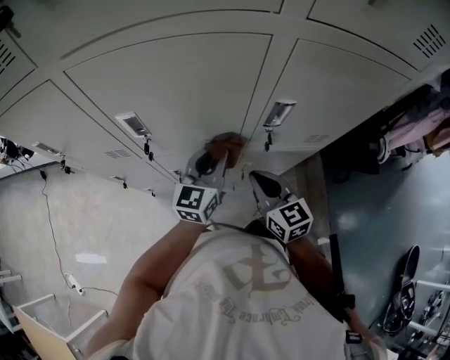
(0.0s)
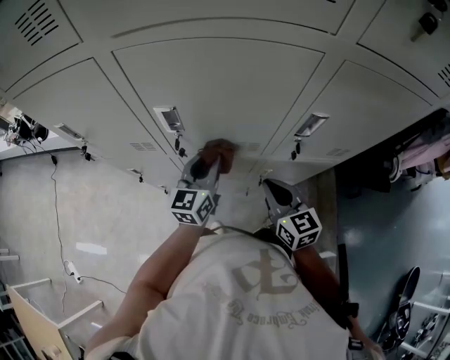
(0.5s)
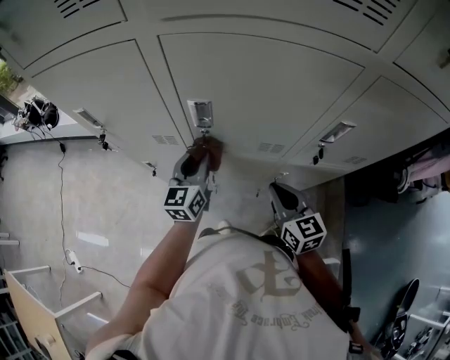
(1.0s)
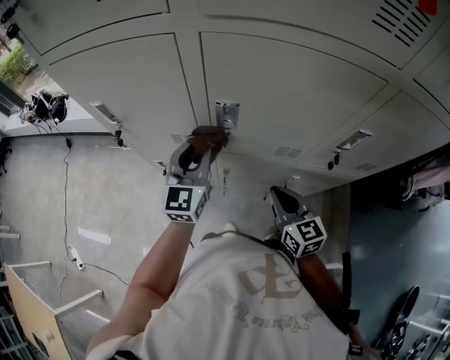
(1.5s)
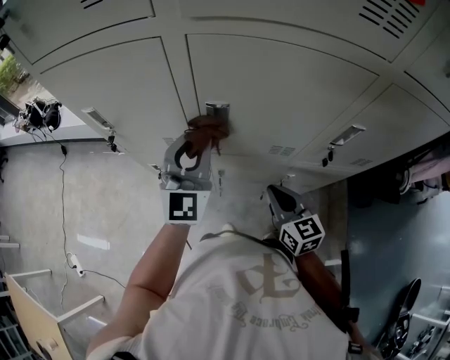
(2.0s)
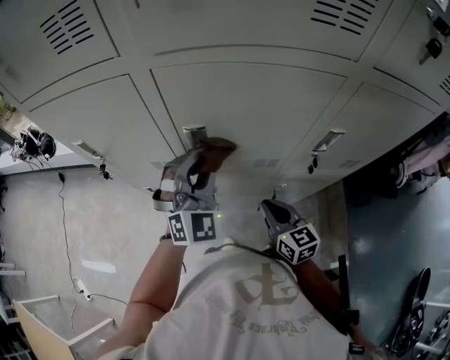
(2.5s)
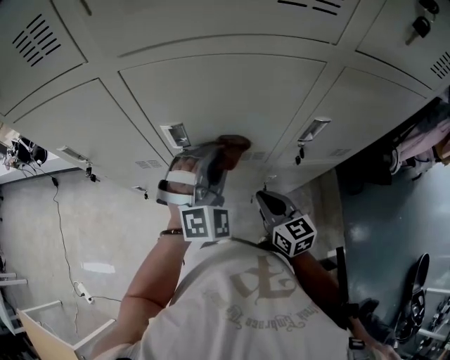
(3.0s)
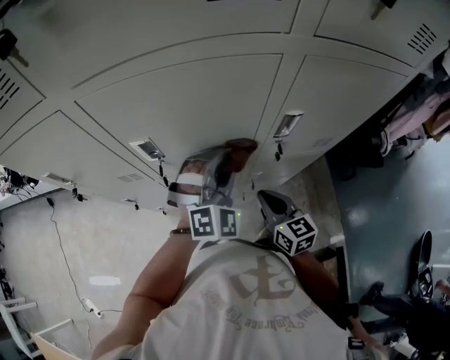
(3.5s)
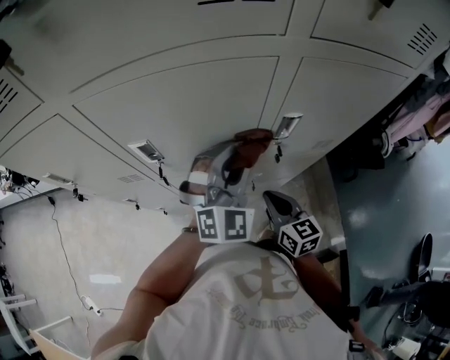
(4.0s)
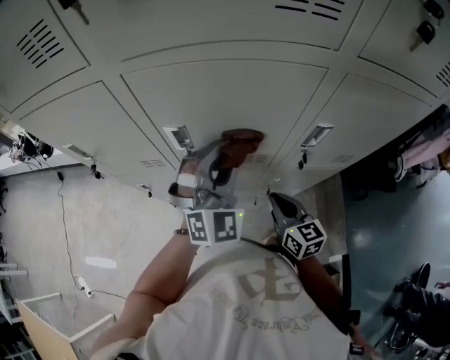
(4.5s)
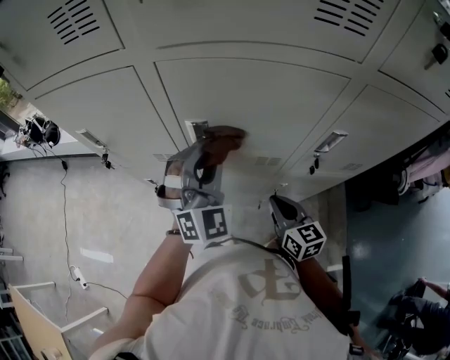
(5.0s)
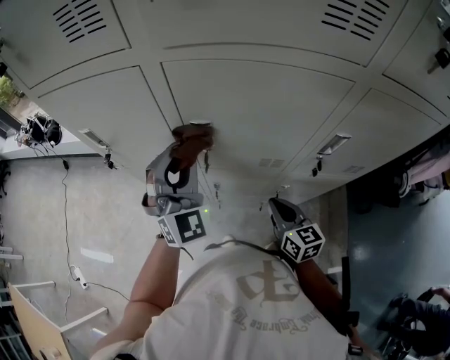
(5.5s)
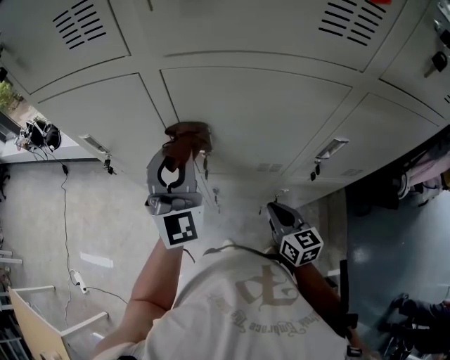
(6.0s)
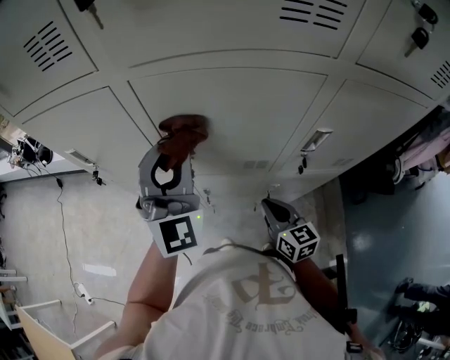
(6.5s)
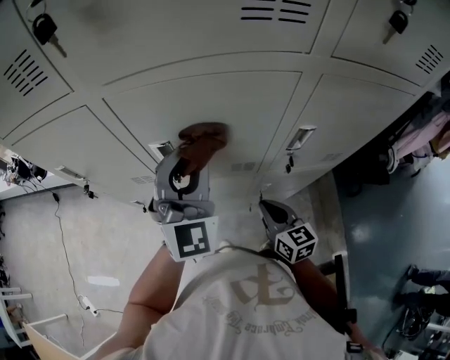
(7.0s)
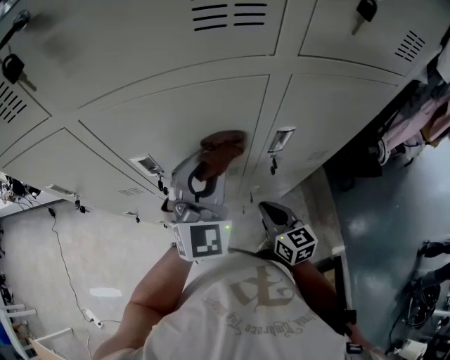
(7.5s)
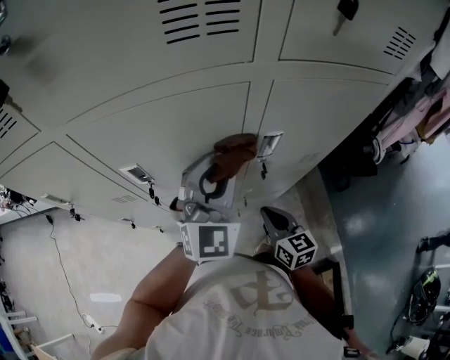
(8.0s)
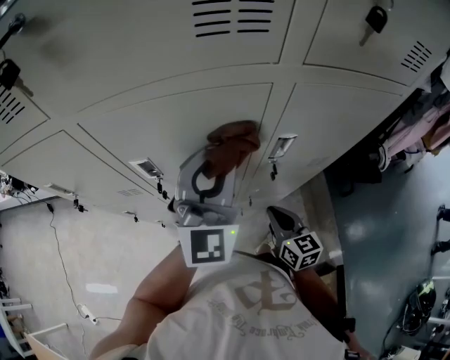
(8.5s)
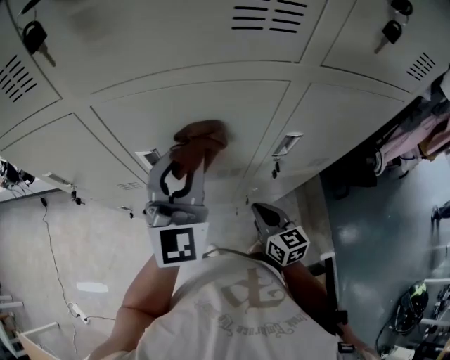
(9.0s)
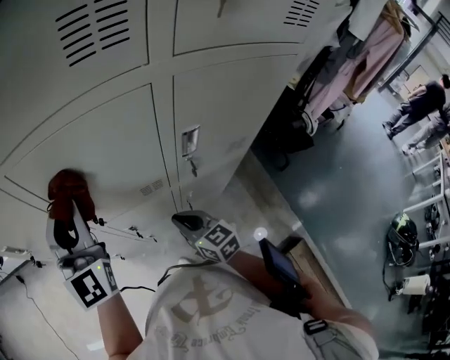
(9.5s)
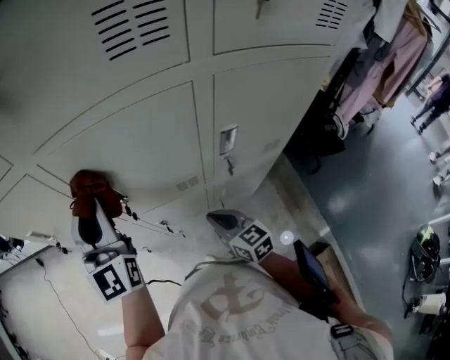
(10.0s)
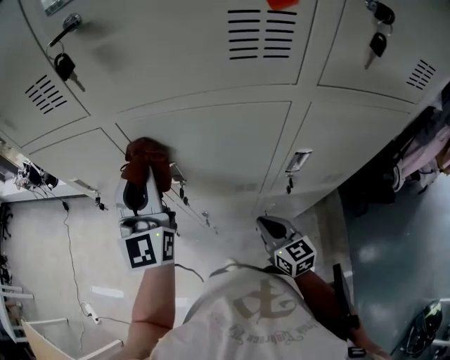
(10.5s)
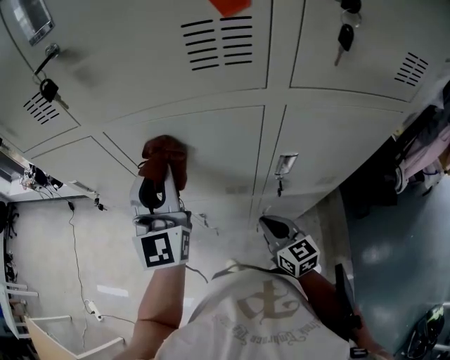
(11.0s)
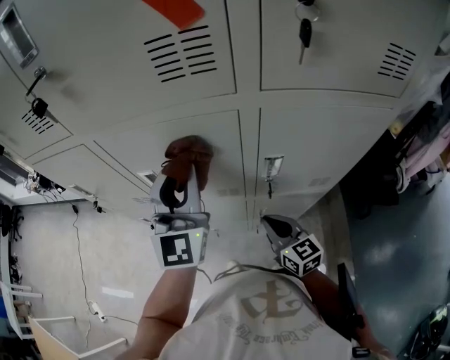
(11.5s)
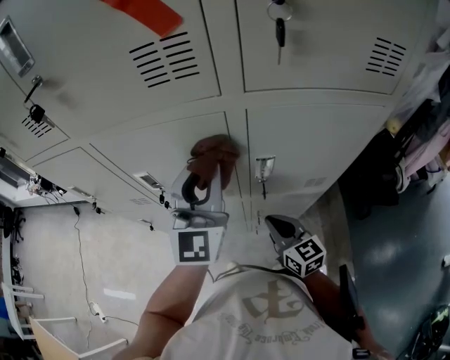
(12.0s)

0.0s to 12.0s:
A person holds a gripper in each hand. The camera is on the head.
0.0s to 2.0s: The right gripper shifts roughly 10 cm to the left. Meanwhile the left gripper heads to the left and upward, covering approximately 25 cm, and rotates some 40 degrees.
2.0s to 4.0s: The right gripper is displaced to the right by roughly 10 cm. Meanwhile the left gripper travels to the right by approximately 25 cm, and changes its angle by some 30 degrees.
4.0s to 6.0s: The right gripper is displaced to the left by about 5 cm, while the left gripper heads to the left, covering about 25 cm, and changes its angle by about 30 degrees.
6.0s to 8.0s: The right gripper heads to the right, covering roughly 10 cm; the left gripper goes roughly 25 cm to the right, and rotates about 30 degrees.
8.0s to 10.0s: The left gripper shifts some 20 cm to the left, and turns by about 30 degrees. Meanwhile the right gripper goes approximately 10 cm to the left.
10.0s to 12.0s: The left gripper moves to the right, some 20 cm, while the right gripper travels to the right by roughly 10 cm.

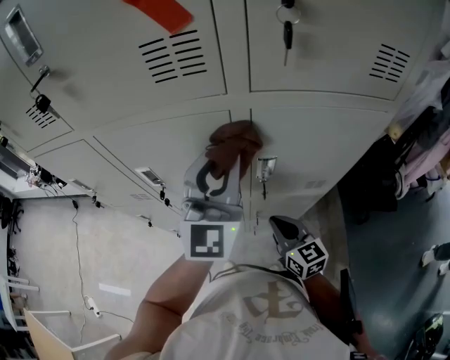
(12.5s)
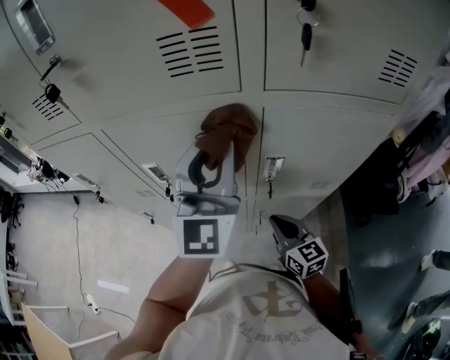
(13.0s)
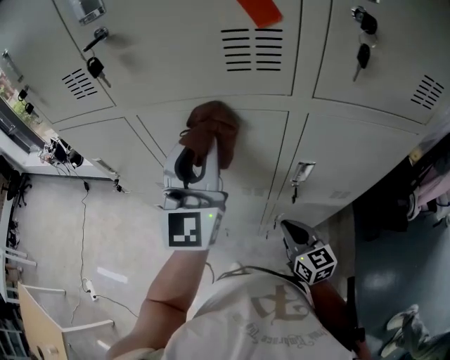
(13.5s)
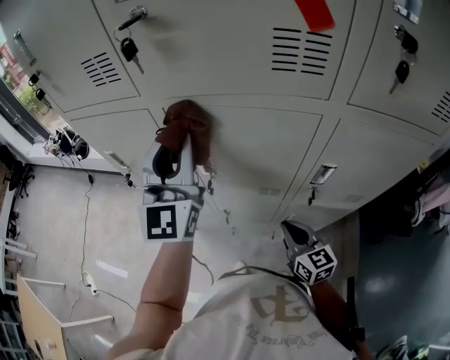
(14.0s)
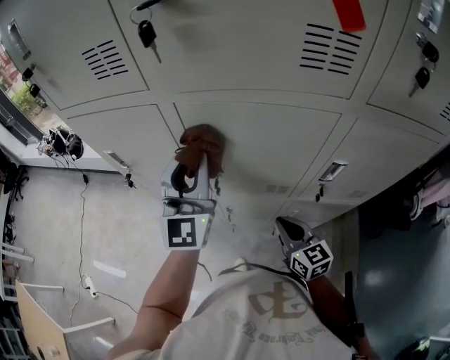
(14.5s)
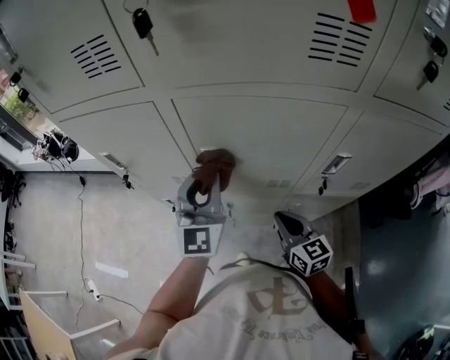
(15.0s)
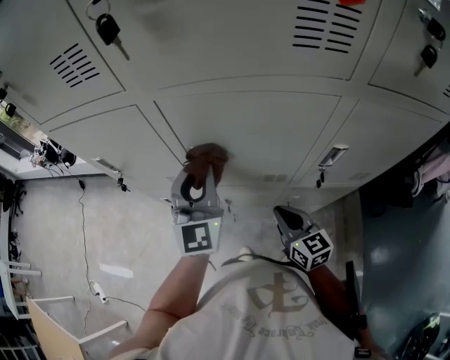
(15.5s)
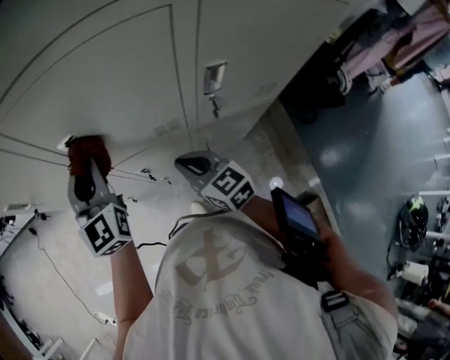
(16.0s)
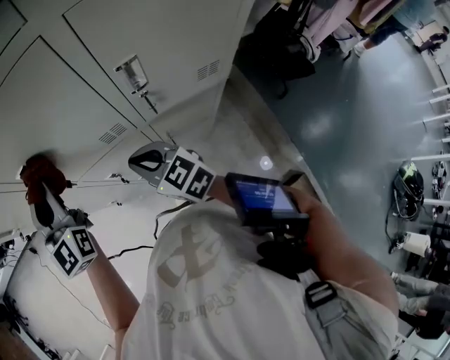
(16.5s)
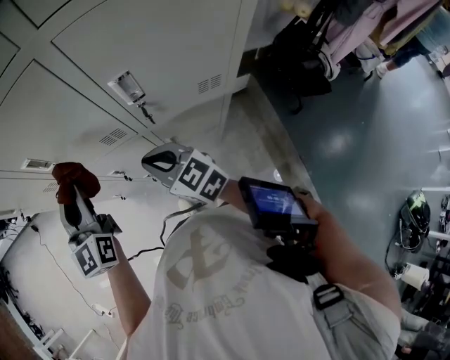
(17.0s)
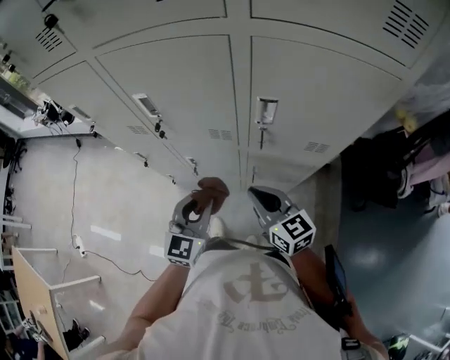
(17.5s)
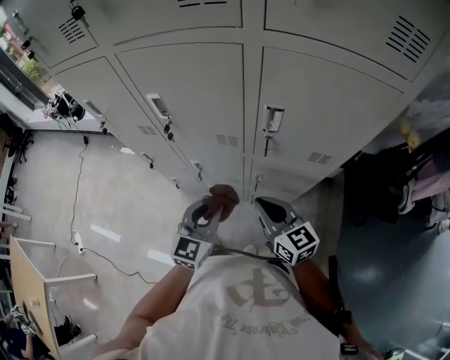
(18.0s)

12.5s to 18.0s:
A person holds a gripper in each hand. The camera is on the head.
12.5s to 14.5s: The left gripper heads to the left, covering approximately 25 cm, while the right gripper goes approximately 15 cm to the left.
14.5s to 16.0s: The left gripper heads downward, covering approximately 10 cm; the right gripper changes place by some 5 cm.
16.0s to 18.0s: The left gripper is displaced backward, to the right and downward by approximately 30 cm; the right gripper heads backward and to the right, covering approximately 20 cm.

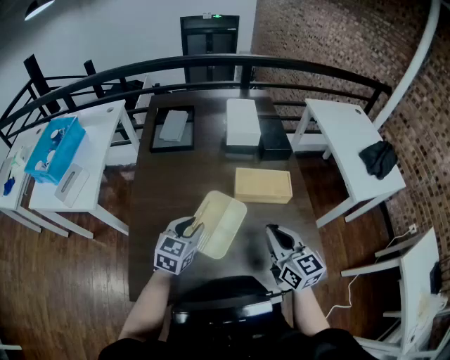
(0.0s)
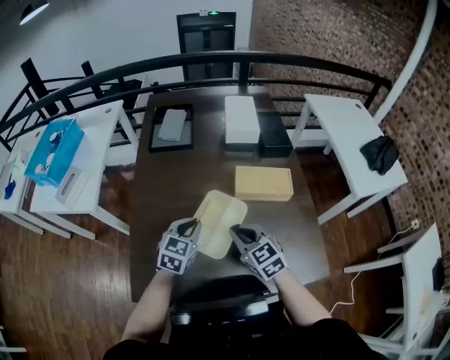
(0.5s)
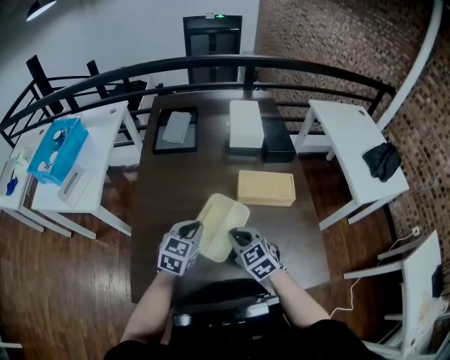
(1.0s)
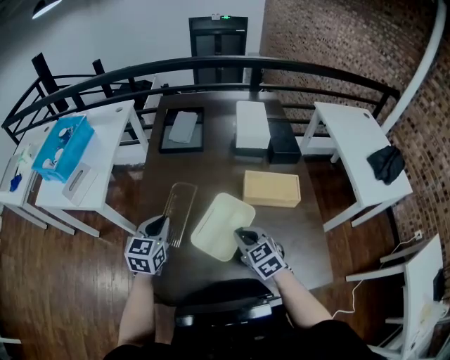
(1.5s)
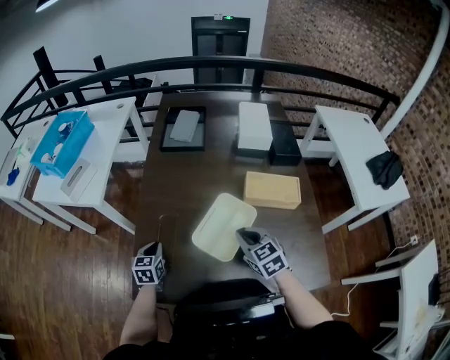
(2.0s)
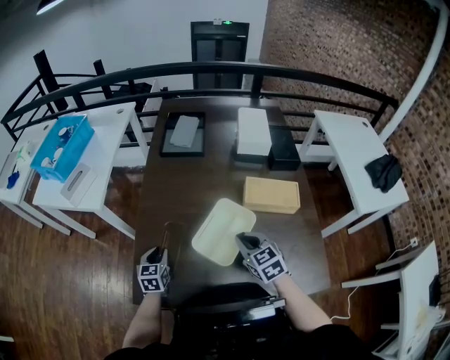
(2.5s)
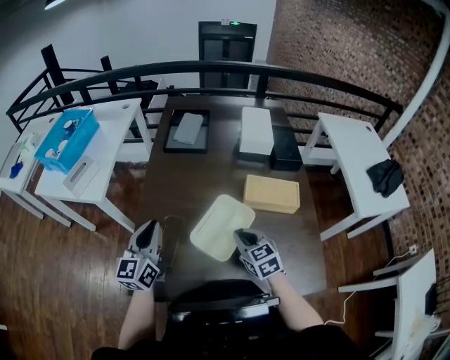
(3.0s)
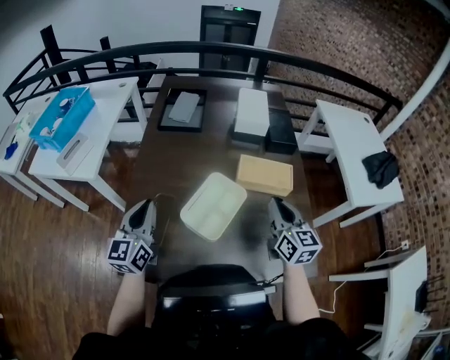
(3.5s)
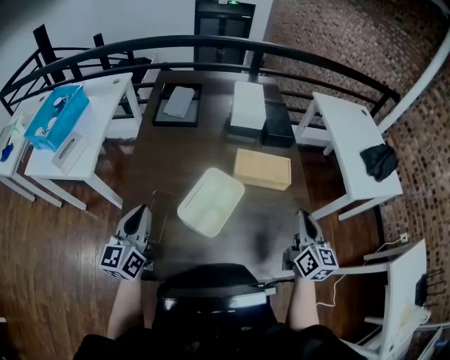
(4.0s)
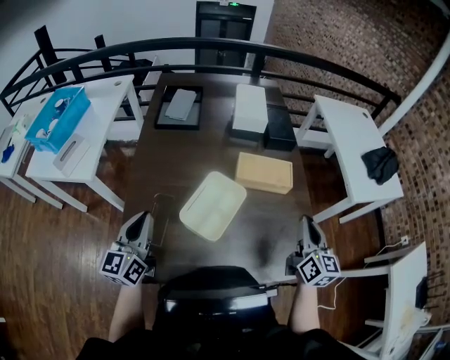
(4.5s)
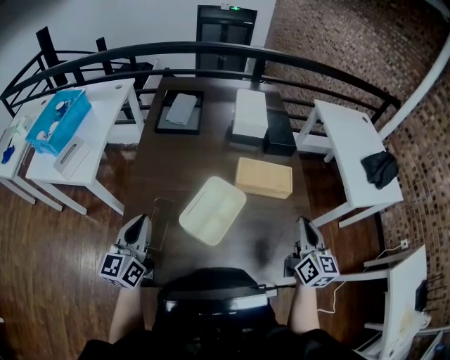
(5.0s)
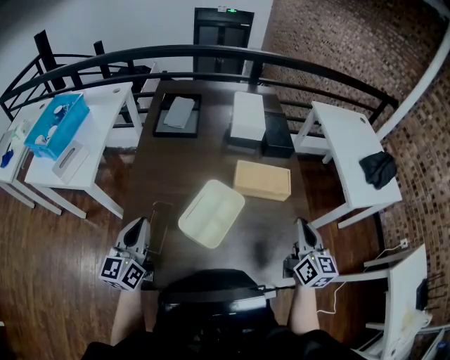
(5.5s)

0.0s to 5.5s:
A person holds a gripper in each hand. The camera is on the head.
0.0s to 2.0s: The left gripper moves to the left and downward, about 25 cm, changes its angle by about 30 degrees, and closes up. The right gripper moves downward and to the left, about 15 cm, and swivels roughly 30 degrees.
2.0s to 3.5s: The right gripper travels to the right and upward by some 15 cm, and rotates some 30 degrees, while the left gripper shifts some 20 cm upward, and tips its fingers upward by some 30 degrees.
3.5s to 5.5s: The right gripper moves to the right, approximately 10 cm.

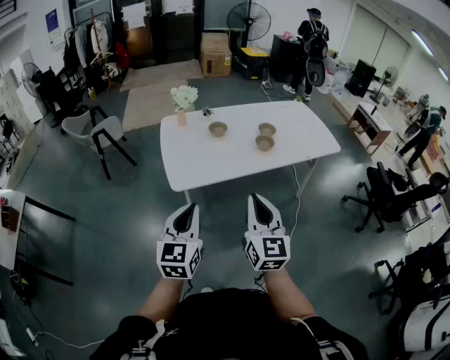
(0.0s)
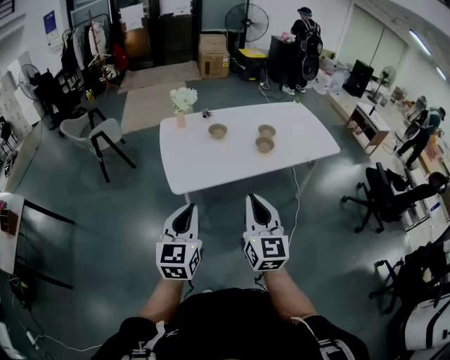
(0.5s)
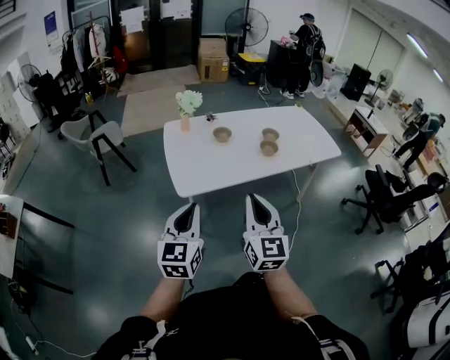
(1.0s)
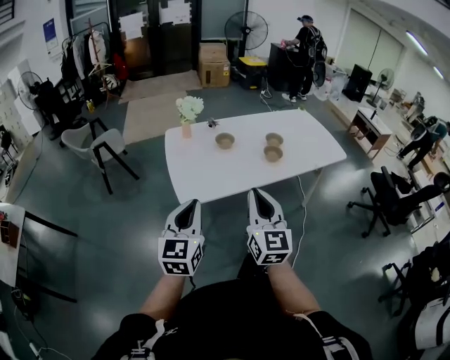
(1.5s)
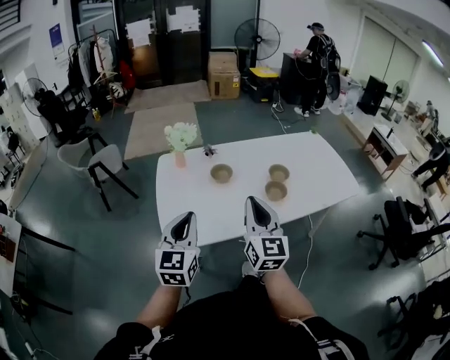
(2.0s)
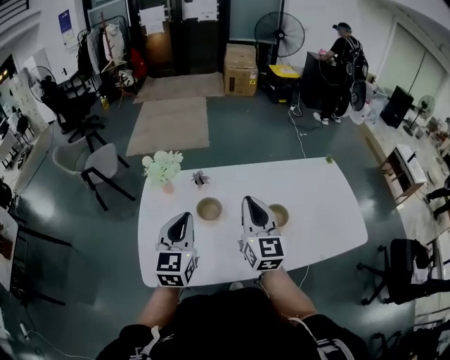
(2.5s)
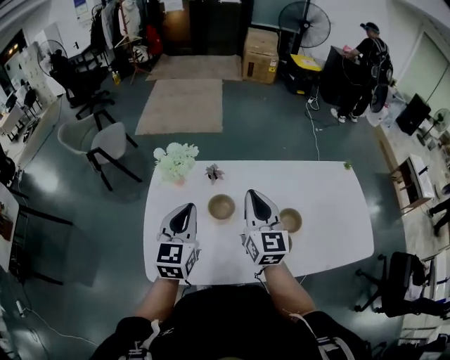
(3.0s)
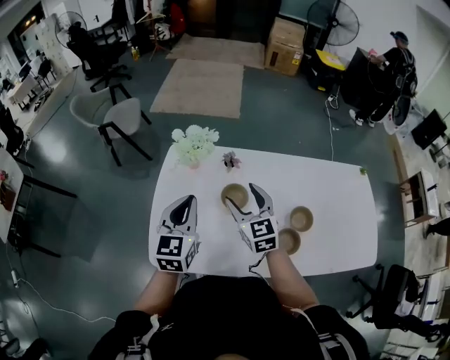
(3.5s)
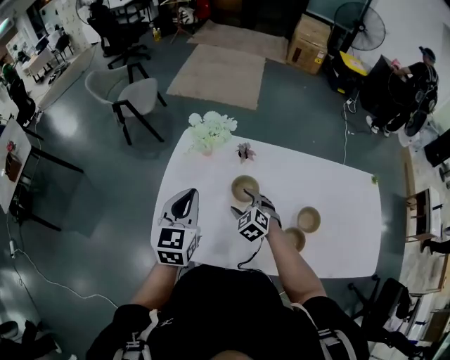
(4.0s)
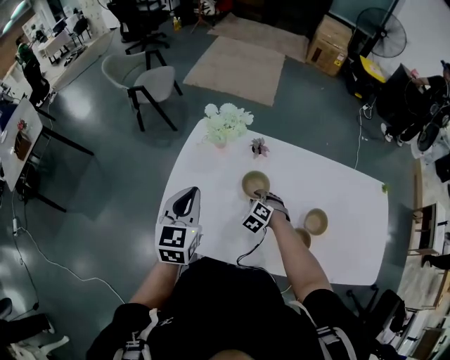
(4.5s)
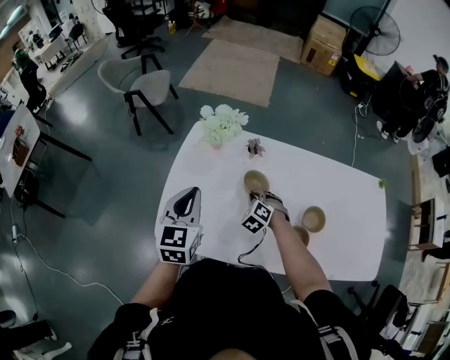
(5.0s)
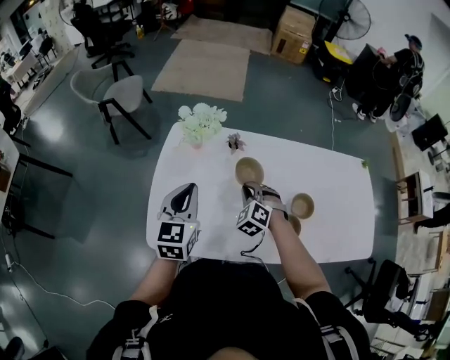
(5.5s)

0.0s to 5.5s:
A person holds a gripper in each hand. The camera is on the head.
0.0s to 2.0s: Both grippers travel together forward, some 35 cm.
2.0s to 3.5s: The two grippers travel together, forward, some 40 cm. The right gripper swivels some 40 degrees, and opens up.
3.5s to 5.5s: The right gripper shifts about 10 cm downward, rotates around the line of its fingers by roughly 40 degrees, counterclockwise from behind, and closes its fingers.
